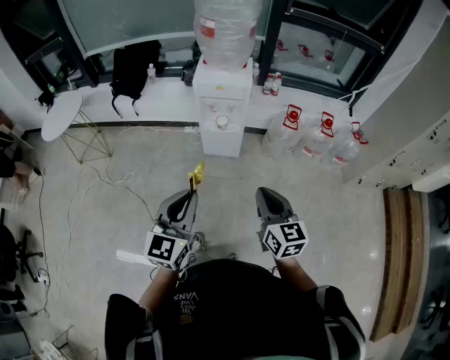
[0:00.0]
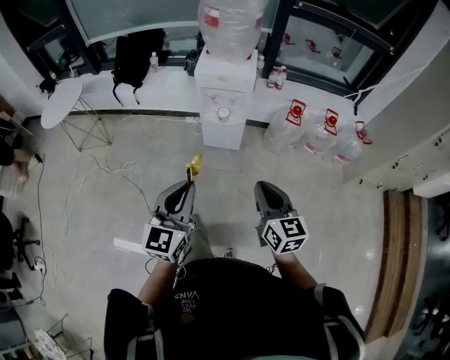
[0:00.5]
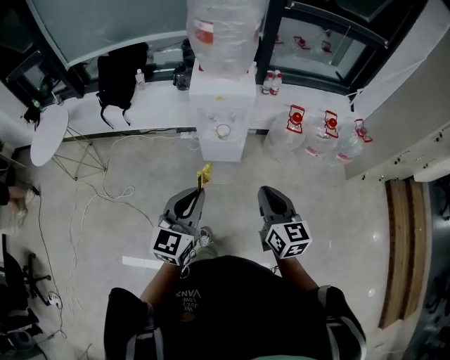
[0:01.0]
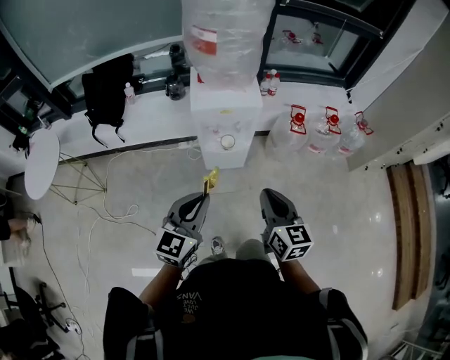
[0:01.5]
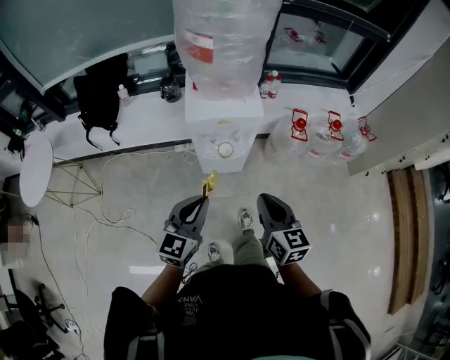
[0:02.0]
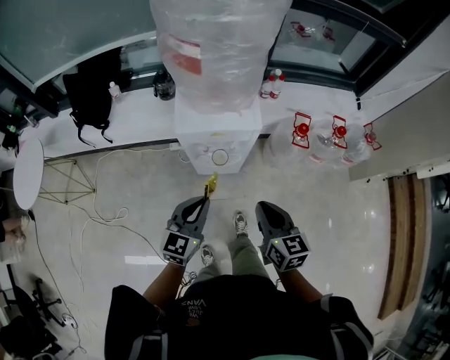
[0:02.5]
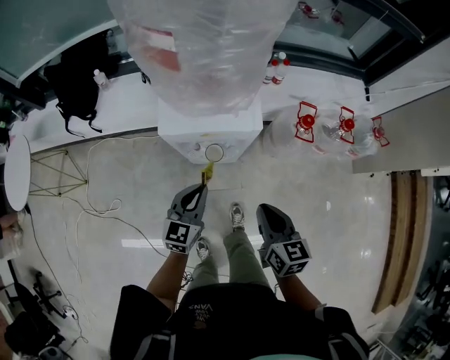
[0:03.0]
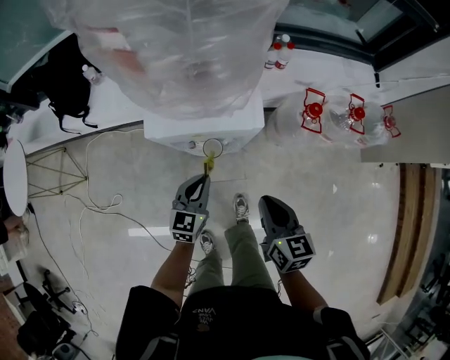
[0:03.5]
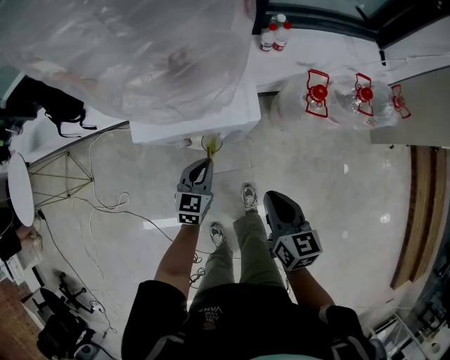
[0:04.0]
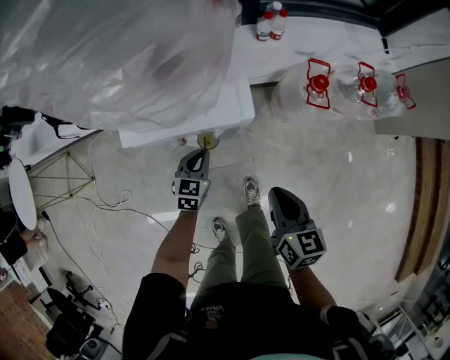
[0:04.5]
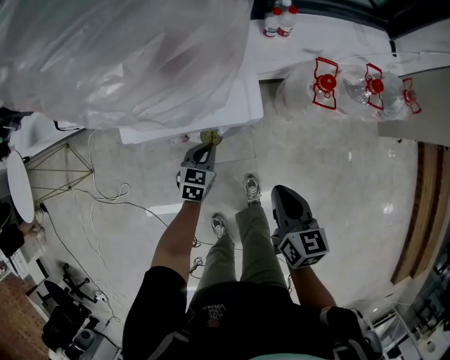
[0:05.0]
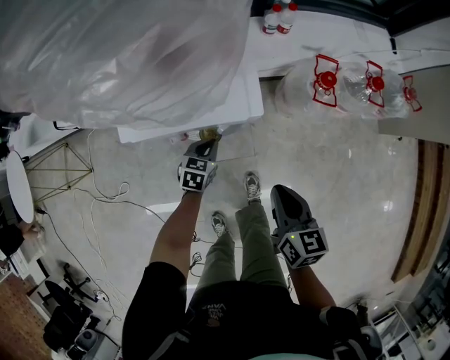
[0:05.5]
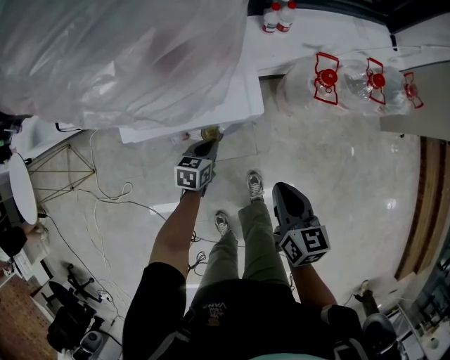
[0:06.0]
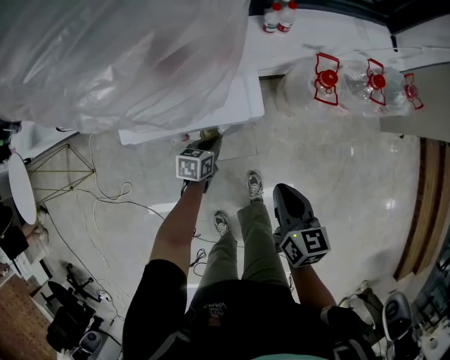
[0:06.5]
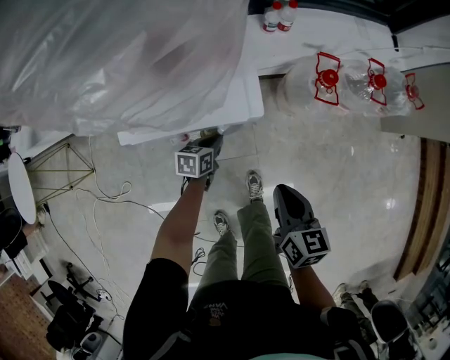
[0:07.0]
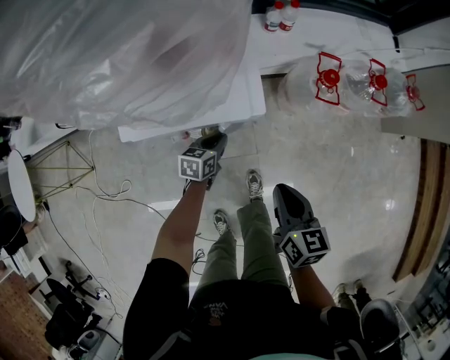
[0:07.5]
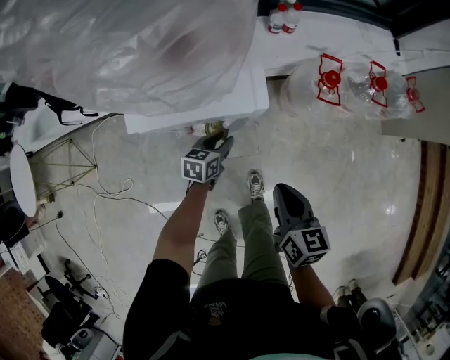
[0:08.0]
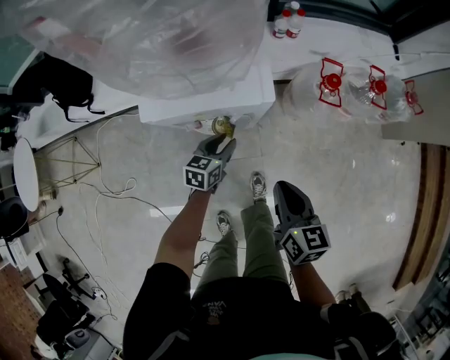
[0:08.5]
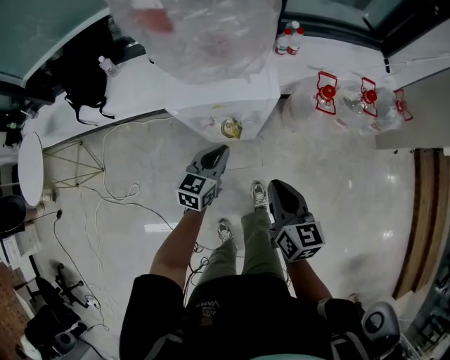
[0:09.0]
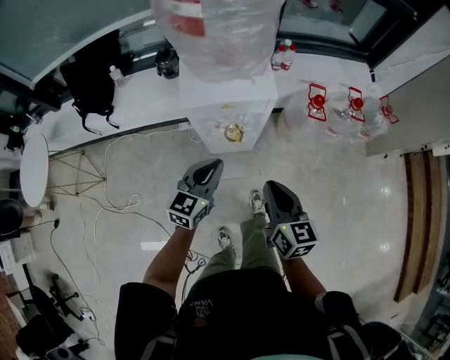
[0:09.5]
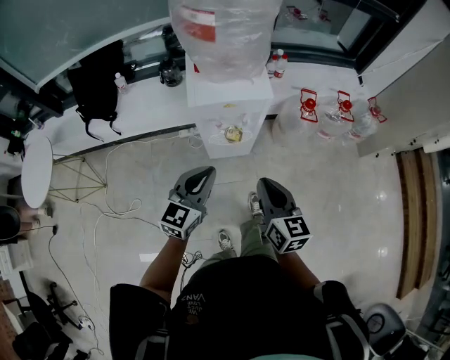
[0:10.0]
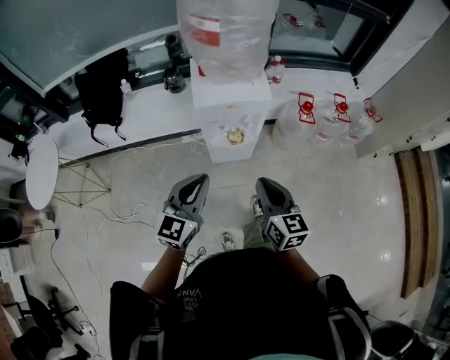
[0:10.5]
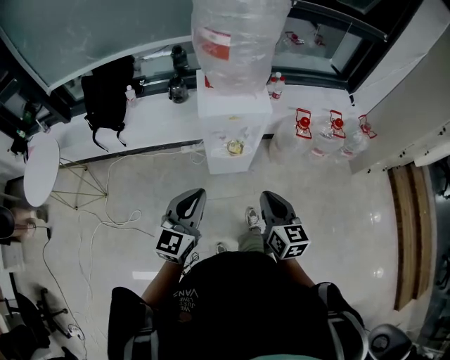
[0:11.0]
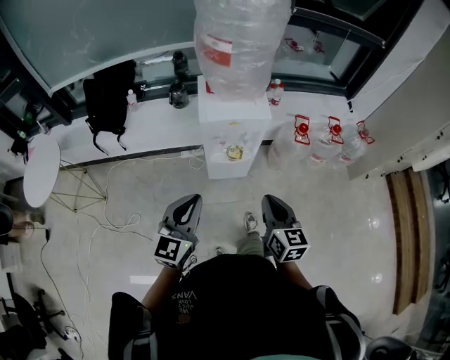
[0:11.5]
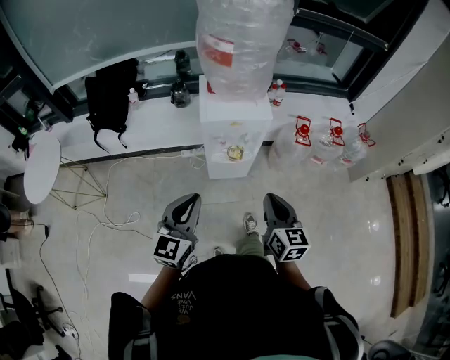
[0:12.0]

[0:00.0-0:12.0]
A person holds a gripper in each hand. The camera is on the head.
0.0 to 2.0 s: The left gripper travels forward by some 35 cm. Meanwhile the right gripper is displaced forward and to the left by some 30 cm.
2.0 to 4.0 s: The left gripper heads downward and forward, covering roughly 40 cm, and turns by some 20 degrees, while the right gripper is displaced downward, forward and to the right by about 30 cm.
4.0 to 6.0 s: The left gripper goes roughly 10 cm downward, and changes its angle by approximately 30 degrees.
6.0 to 8.0 s: The left gripper opens up.
8.0 to 10.0 s: The right gripper moves upward, backward and to the left, some 30 cm, while the left gripper travels upward and backward by roughly 50 cm, angles its fingers upward, by some 30 degrees, and closes its fingers.
10.0 to 12.0 s: The left gripper heads backward, upward and to the left, covering some 15 cm. Meanwhile the right gripper heads backward, covering roughly 5 cm.

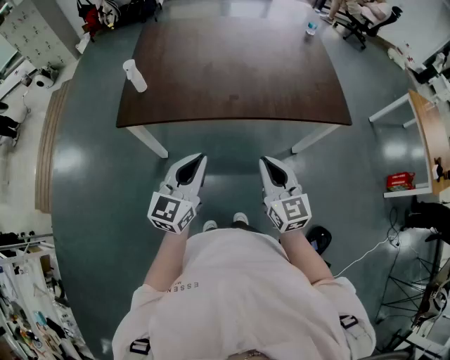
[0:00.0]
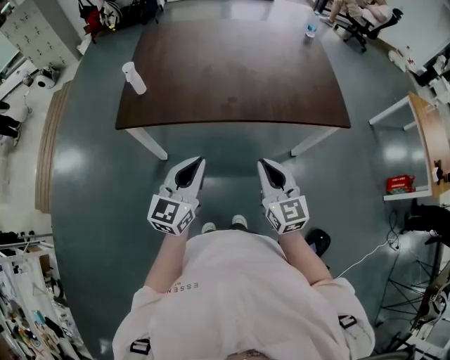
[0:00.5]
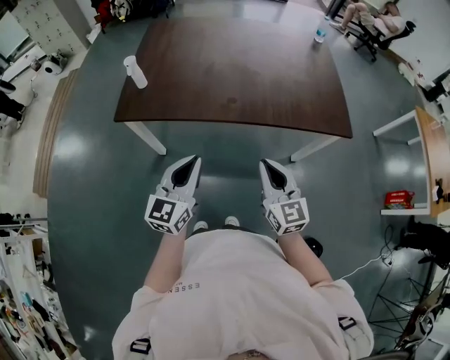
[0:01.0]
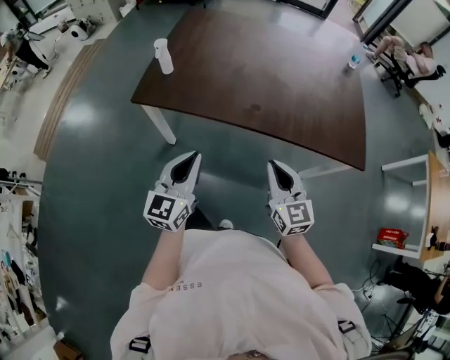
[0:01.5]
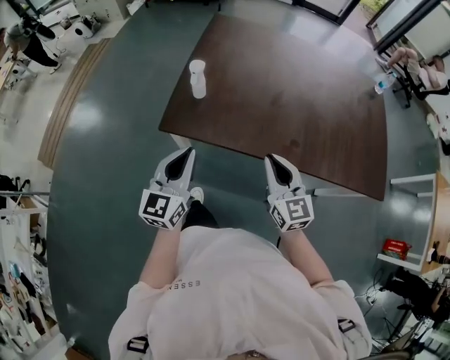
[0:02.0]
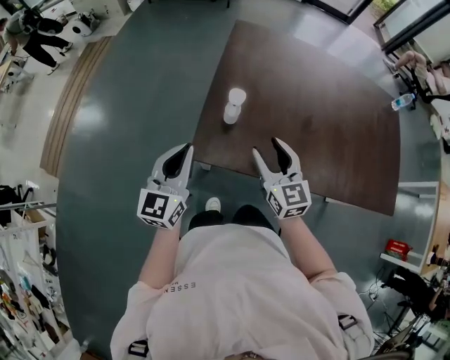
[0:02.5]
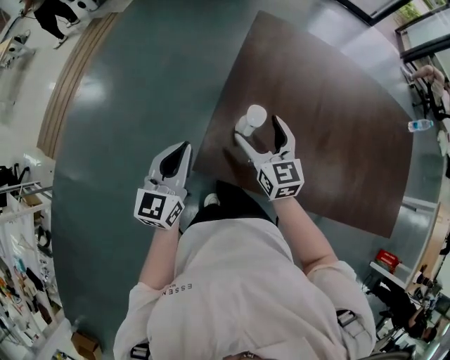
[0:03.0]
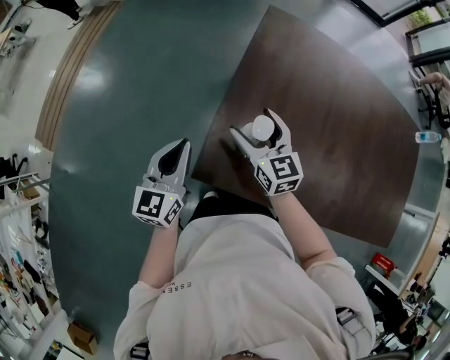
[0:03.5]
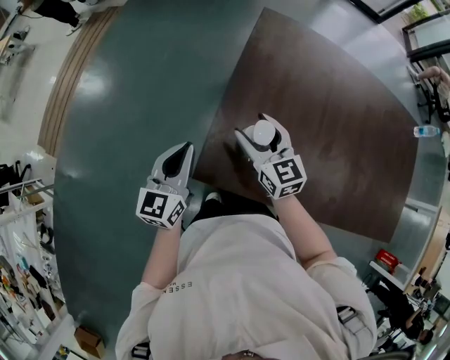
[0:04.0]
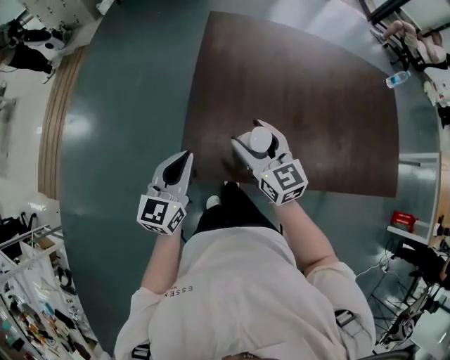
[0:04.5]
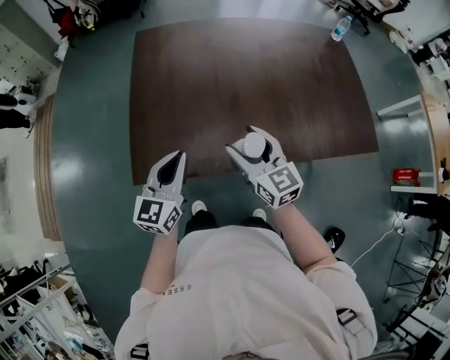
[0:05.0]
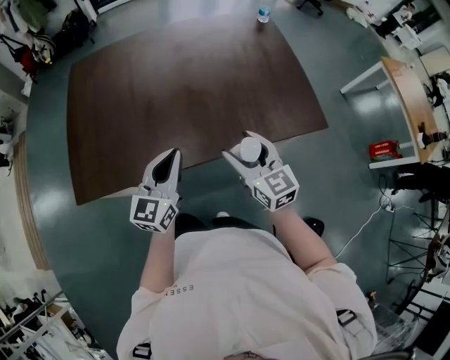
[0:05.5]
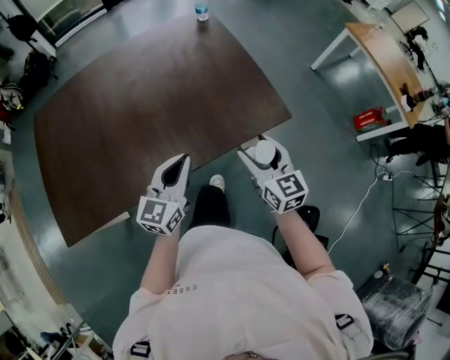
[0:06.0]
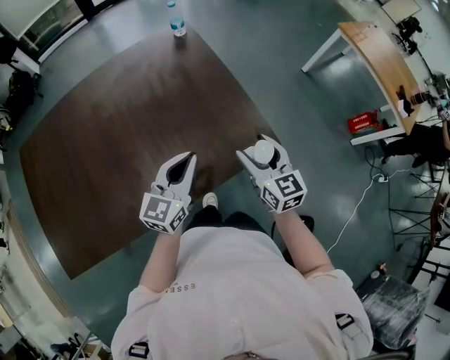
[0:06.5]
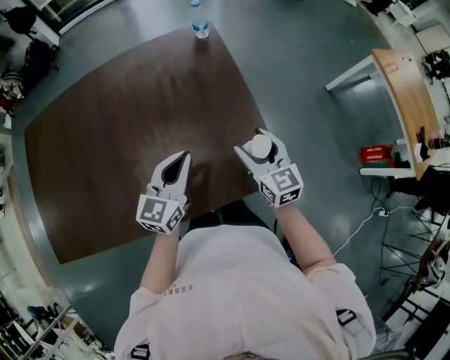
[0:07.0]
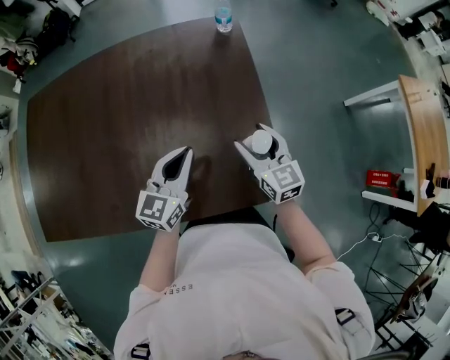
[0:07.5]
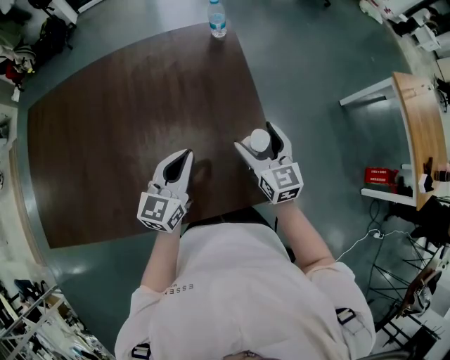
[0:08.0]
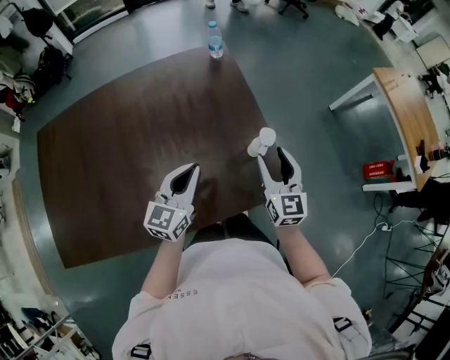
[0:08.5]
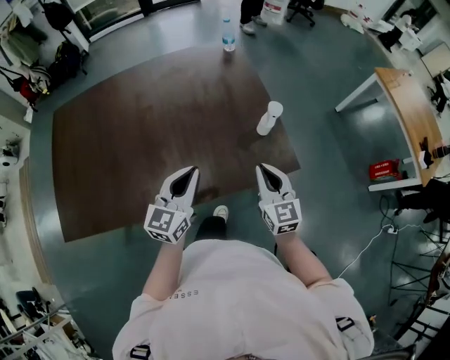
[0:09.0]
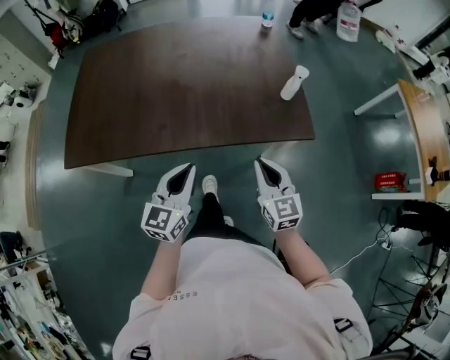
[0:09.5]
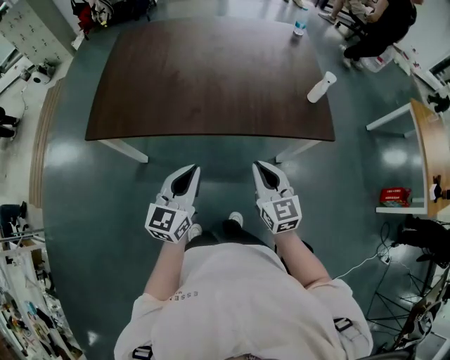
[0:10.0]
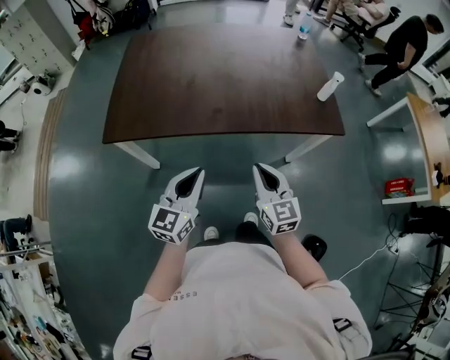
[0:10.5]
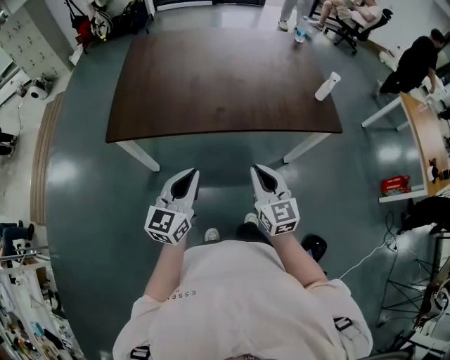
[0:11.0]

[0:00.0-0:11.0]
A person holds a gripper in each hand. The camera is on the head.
0.0 to 2.0 s: The left gripper heads to the left and forward, covering about 25 cm, and swivels roughly 20 degrees, while the right gripper shifts some 25 cm forward and to the left.
2.0 to 3.5 s: The grippers both shift forward and to the left by approximately 30 cm. The right gripper opens its fingers.
3.5 to 5.5 s: The pair of grippers is taken some 50 cm. The left gripper changes its angle by about 40 degrees. The right gripper changes its angle by about 30 degrees.
5.5 to 7.5 s: The pair of grippers is taken forward and to the right, some 40 cm.
7.5 to 9.0 s: The two grippers go about 20 cm backward. The right gripper closes.
9.0 to 11.0 s: The right gripper travels to the left and backward by some 40 cm. The left gripper is displaced backward and to the left by about 40 cm.

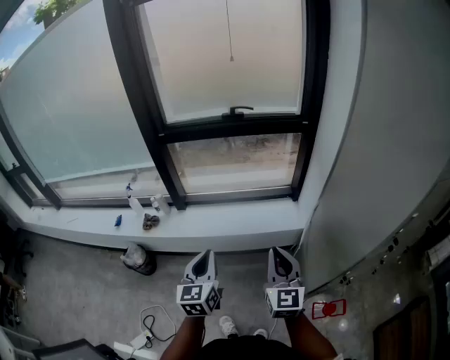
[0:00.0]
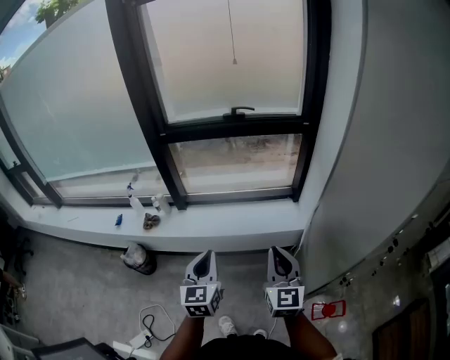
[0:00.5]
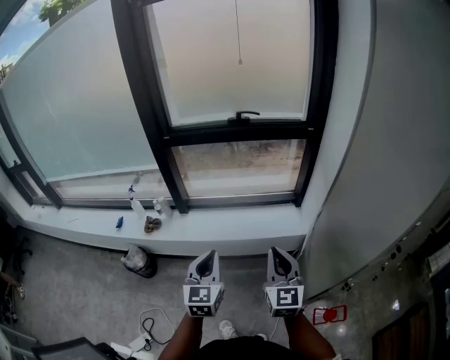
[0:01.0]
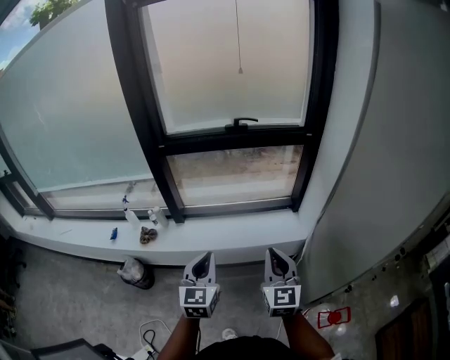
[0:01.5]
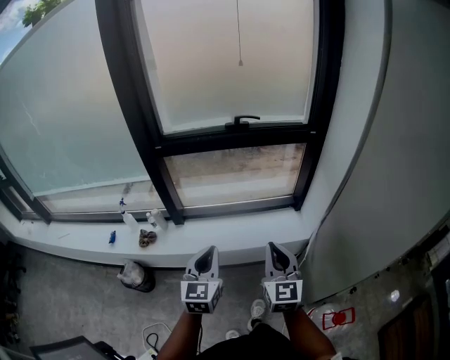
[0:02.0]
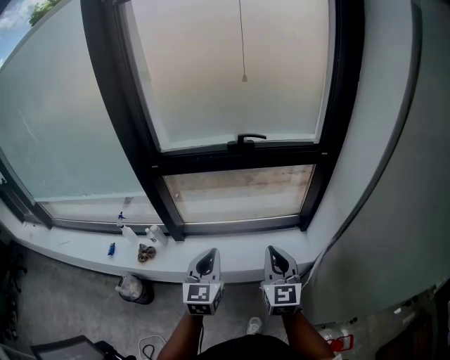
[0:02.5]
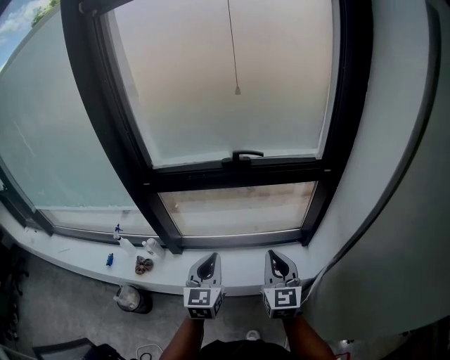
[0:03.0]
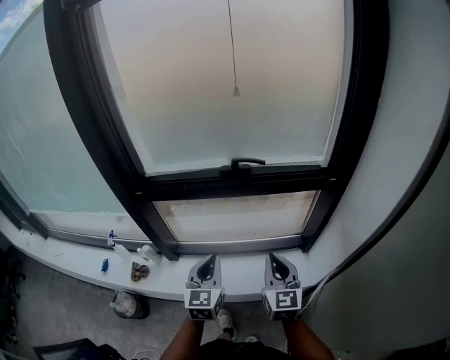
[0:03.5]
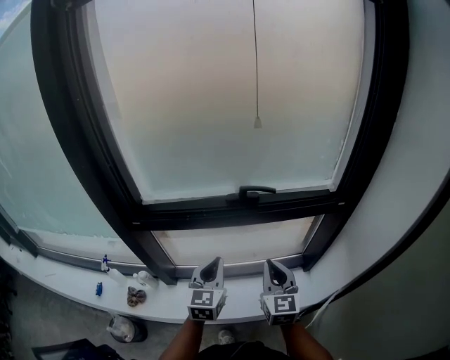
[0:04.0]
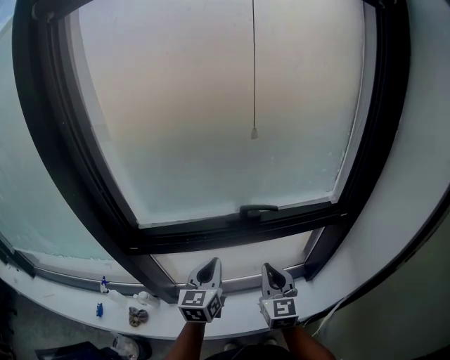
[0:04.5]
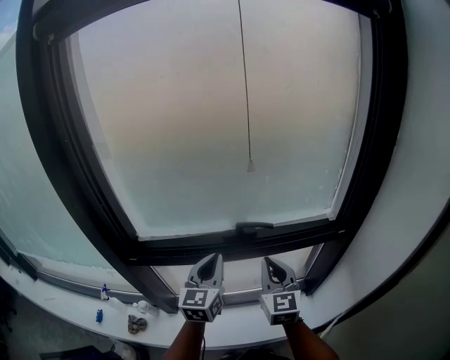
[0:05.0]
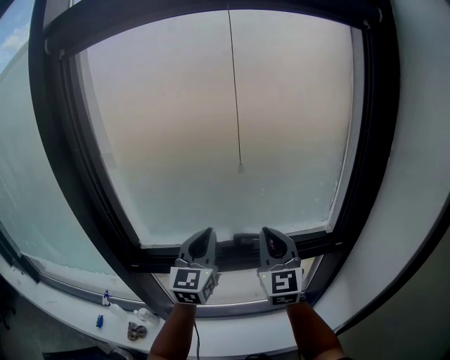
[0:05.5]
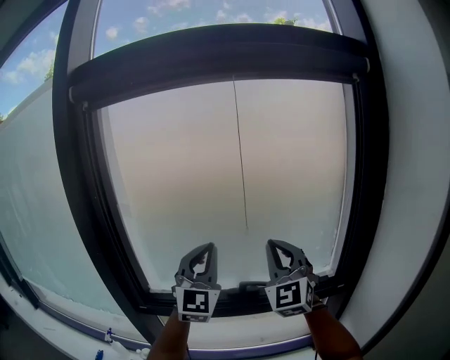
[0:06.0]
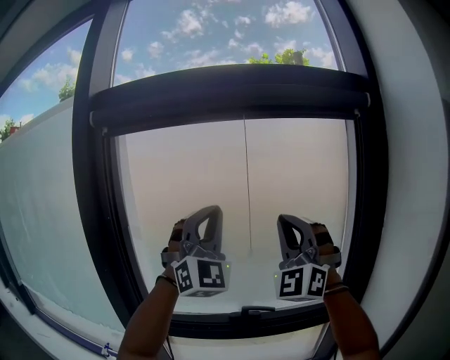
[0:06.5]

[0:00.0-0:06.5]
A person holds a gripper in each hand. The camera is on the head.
0.0 to 2.0 s: The right gripper shifts roughly 15 cm forward and to the left, while the left gripper heads forward, covering approximately 10 cm.
2.0 to 4.5 s: The pair of grippers is taken forward, some 40 cm.
4.5 to 6.5 s: The two grippers go some 50 cm upward. The left gripper rotates around the line of its fingers by about 70 degrees, clockwise from behind, while the right gripper rolls counterclockwise, seen from behind, by some 60 degrees.
